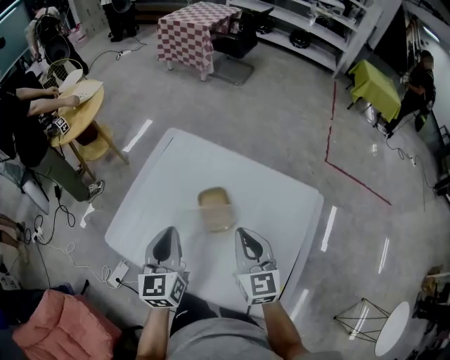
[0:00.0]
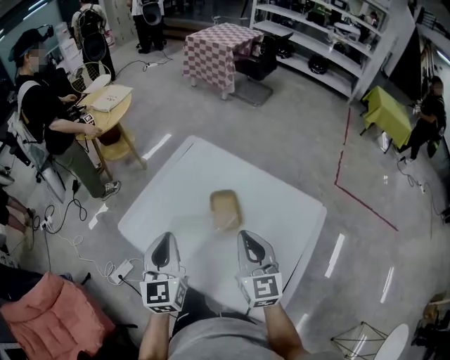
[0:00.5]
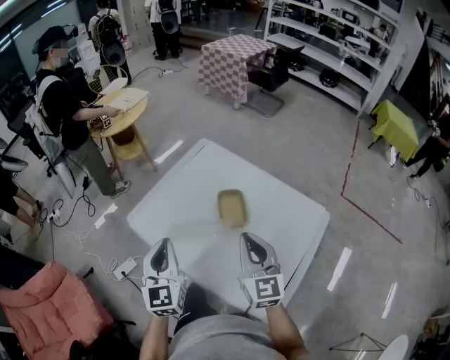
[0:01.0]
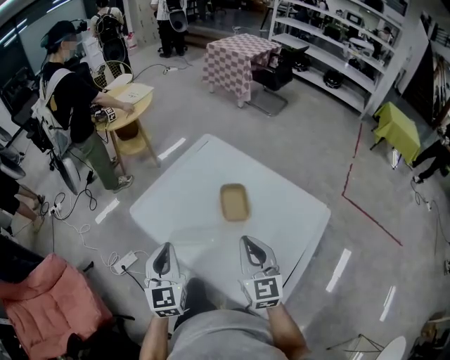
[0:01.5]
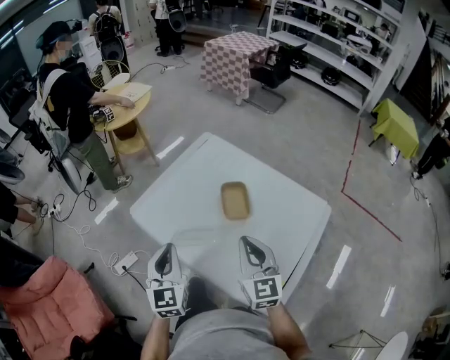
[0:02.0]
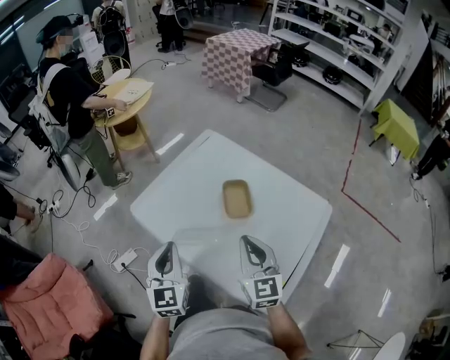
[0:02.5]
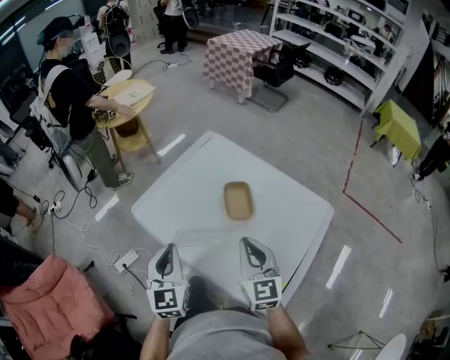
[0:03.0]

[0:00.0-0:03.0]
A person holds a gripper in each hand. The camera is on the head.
0:00.0 to 0:01.5: The left gripper goes roughly 20 cm backward and to the left, and swivels about 20 degrees. Meanwhile the right gripper goes roughly 10 cm backward.
0:01.5 to 0:03.0: The grippers move only a little.

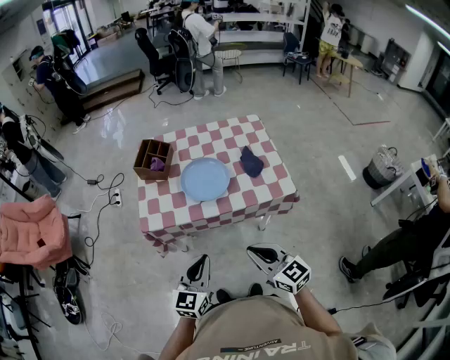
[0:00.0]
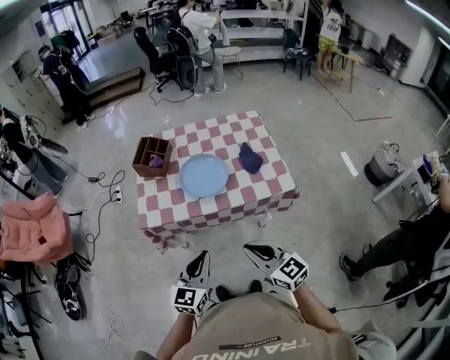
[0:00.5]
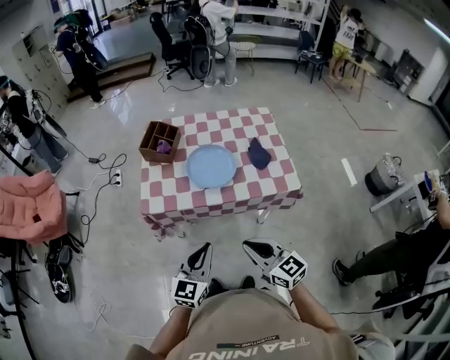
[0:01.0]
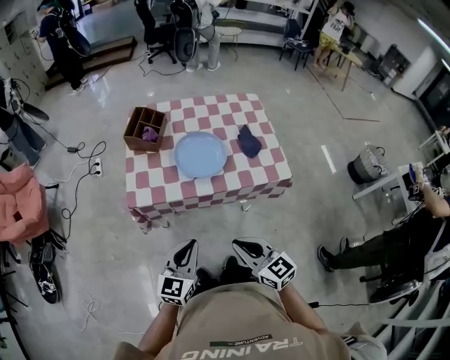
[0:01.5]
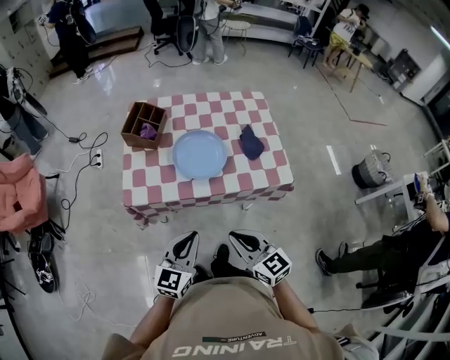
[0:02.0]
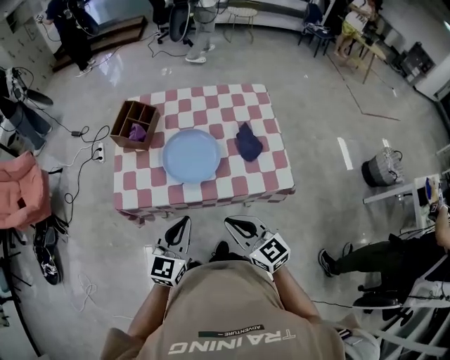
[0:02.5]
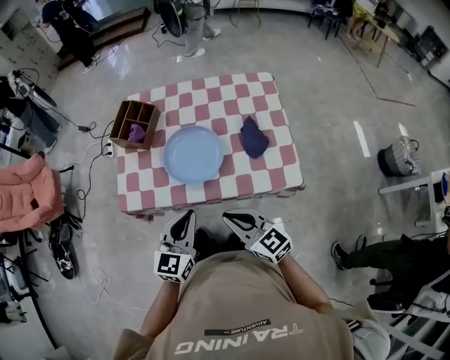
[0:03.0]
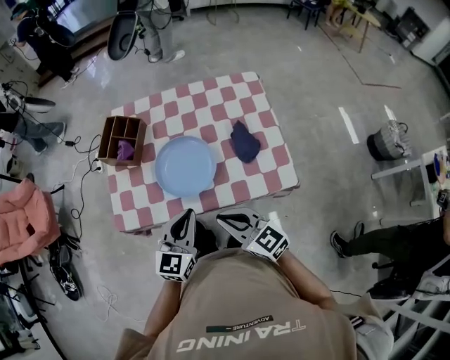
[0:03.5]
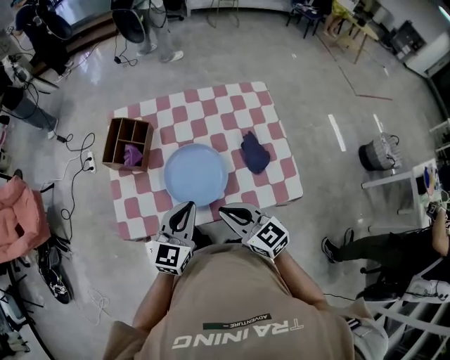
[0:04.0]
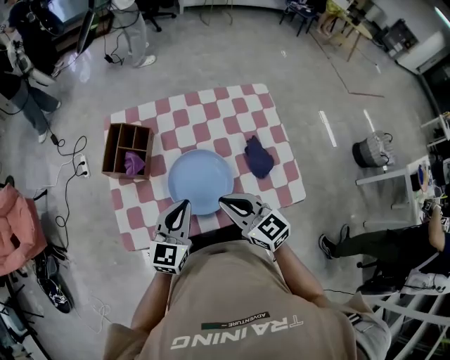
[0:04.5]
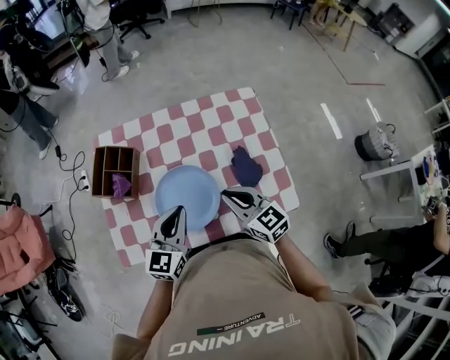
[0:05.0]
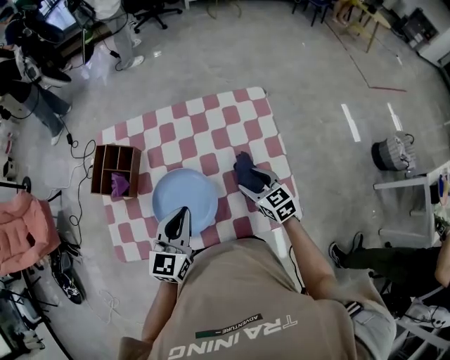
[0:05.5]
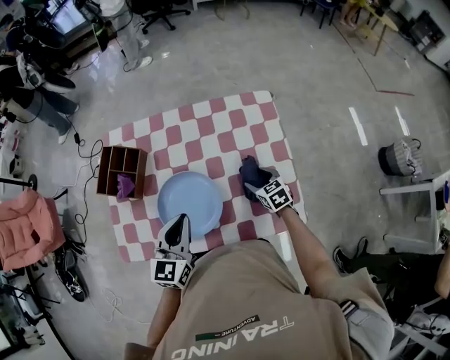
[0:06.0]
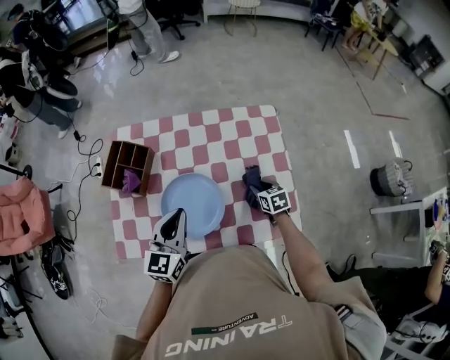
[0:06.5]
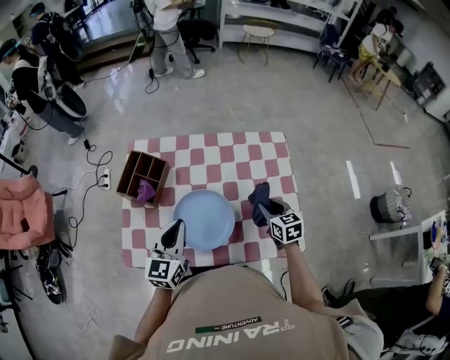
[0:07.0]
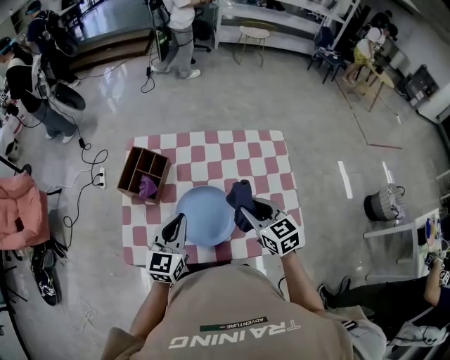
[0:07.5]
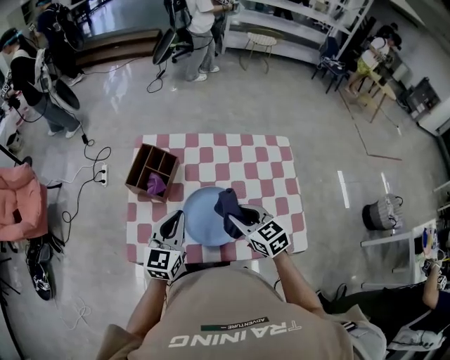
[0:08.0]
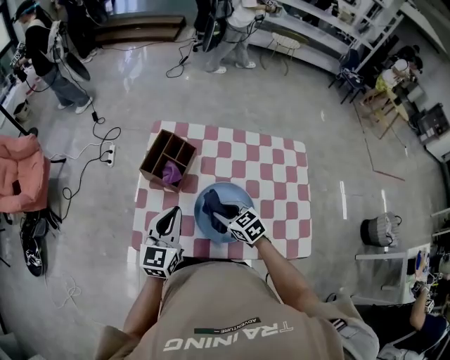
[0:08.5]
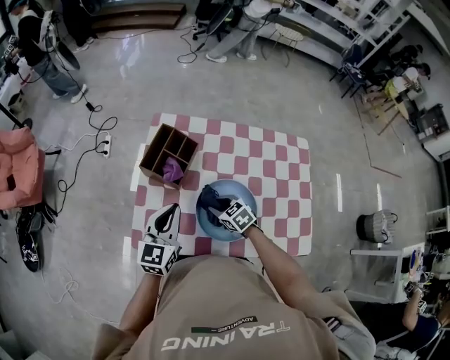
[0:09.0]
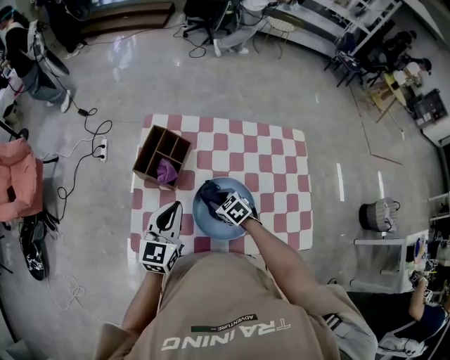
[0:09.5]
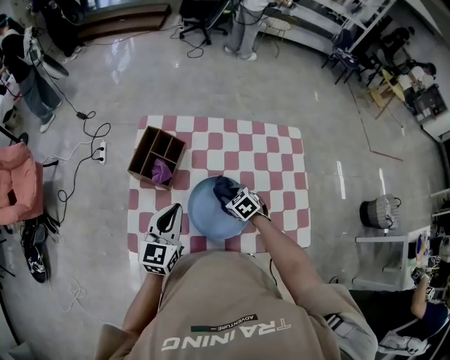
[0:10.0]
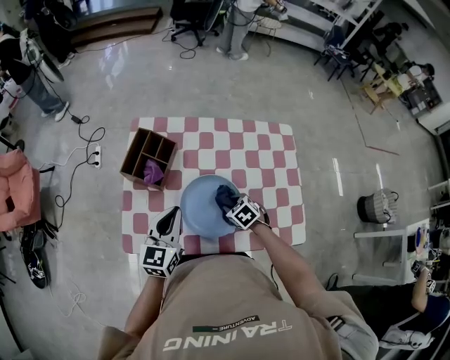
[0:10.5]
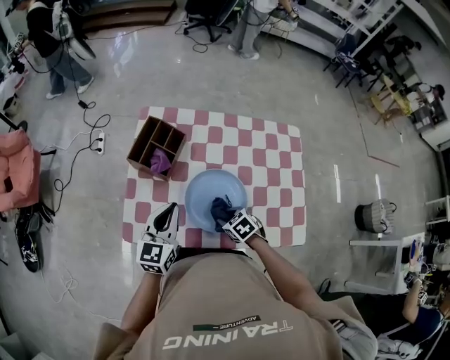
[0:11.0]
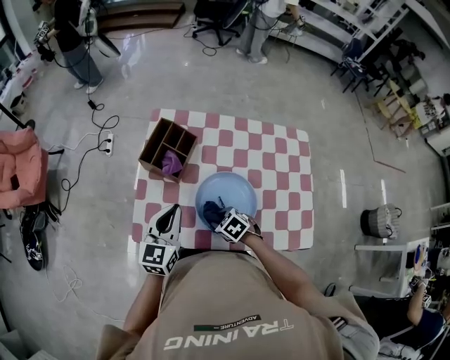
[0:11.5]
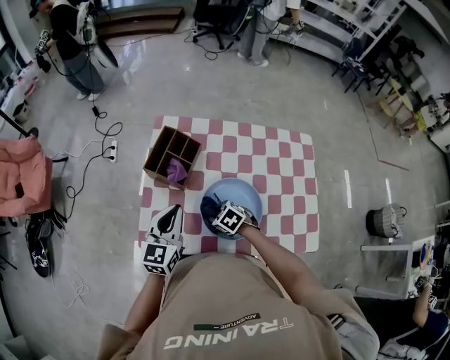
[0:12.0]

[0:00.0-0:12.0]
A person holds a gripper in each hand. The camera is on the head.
0:00.0 to 0:02.0: The grippers move only a little.
0:02.0 to 0:04.0: Both grippers travel together forward, approximately 20 cm.
0:04.0 to 0:06.0: The right gripper shifts approximately 35 cm to the right, forward and downward, turns by roughly 30 degrees, and opens; the left gripper moves forward, about 10 cm.
0:06.0 to 0:08.0: The left gripper travels to the left by approximately 10 cm. The right gripper shifts some 30 cm to the left and upward, rotates approximately 20 degrees, and closes.
0:08.0 to 0:10.0: The right gripper is displaced downward and forward by roughly 20 cm, and rotates approximately 30 degrees.
0:10.0 to 0:12.0: The right gripper heads to the left, covering about 15 cm.

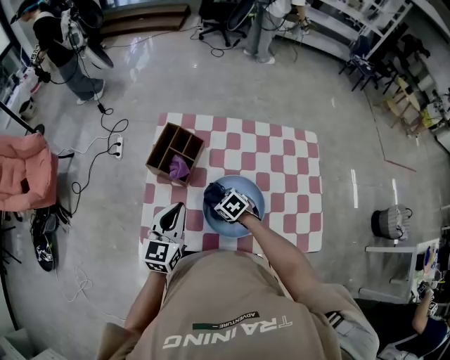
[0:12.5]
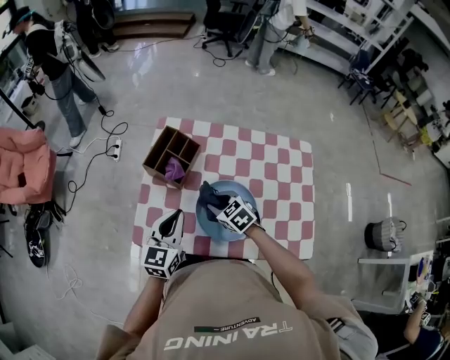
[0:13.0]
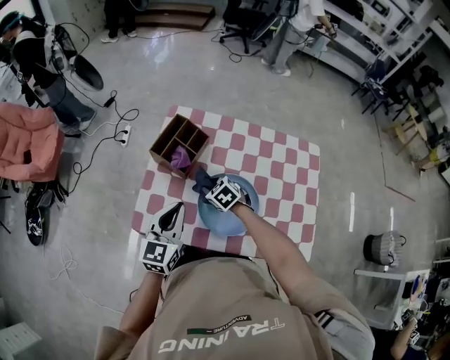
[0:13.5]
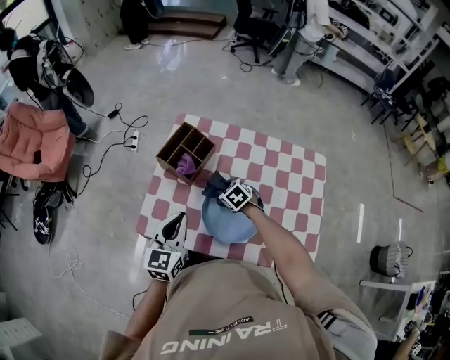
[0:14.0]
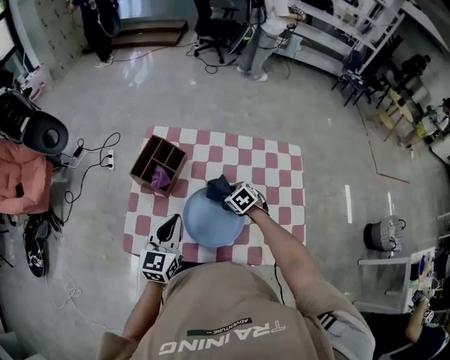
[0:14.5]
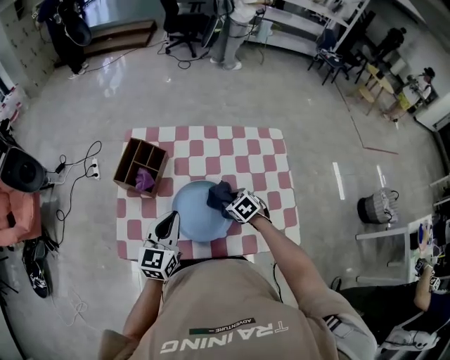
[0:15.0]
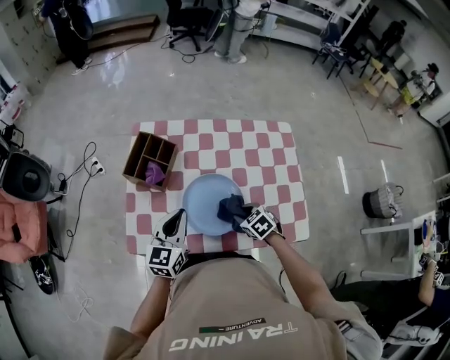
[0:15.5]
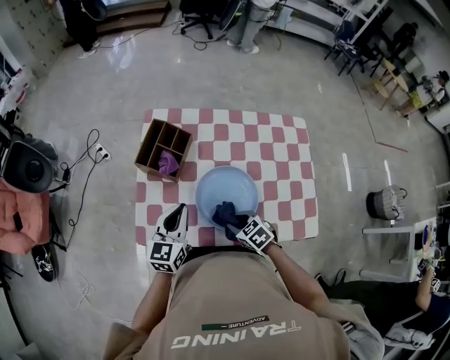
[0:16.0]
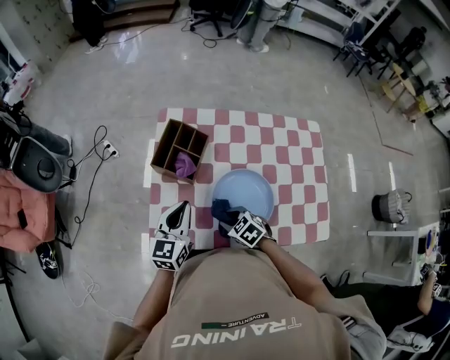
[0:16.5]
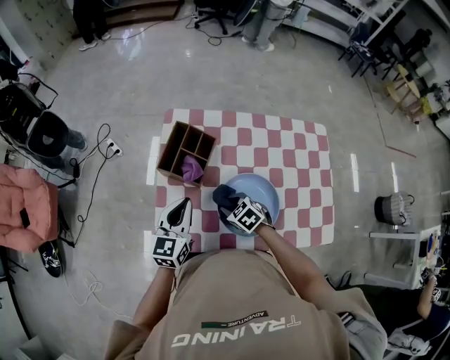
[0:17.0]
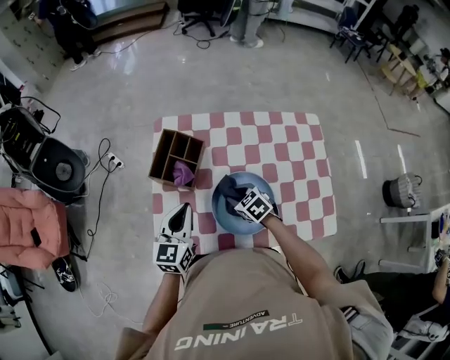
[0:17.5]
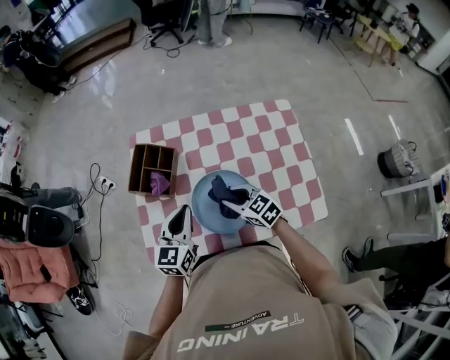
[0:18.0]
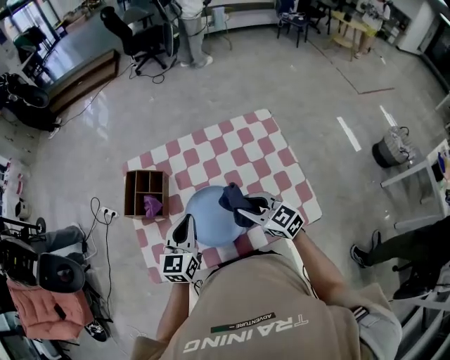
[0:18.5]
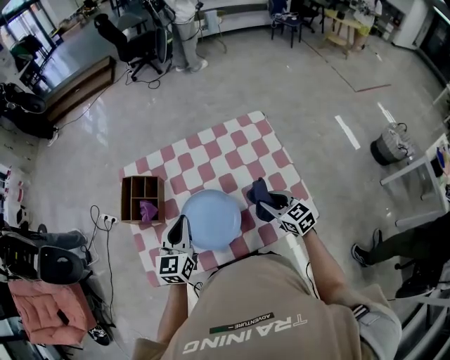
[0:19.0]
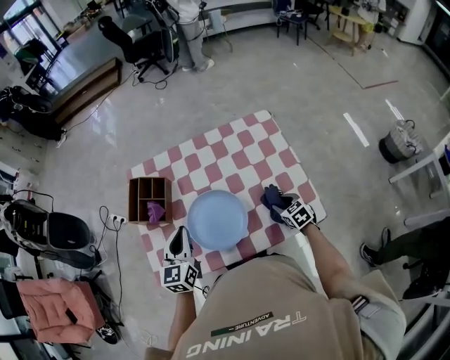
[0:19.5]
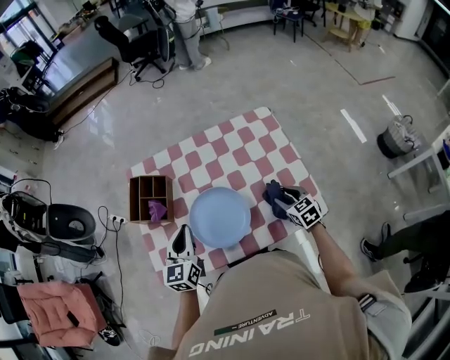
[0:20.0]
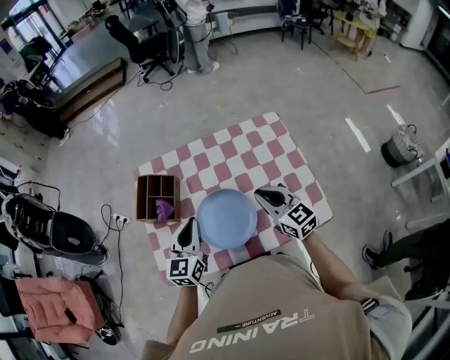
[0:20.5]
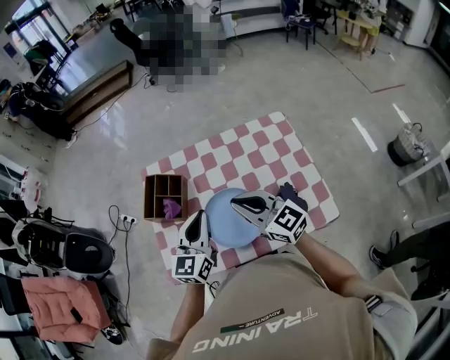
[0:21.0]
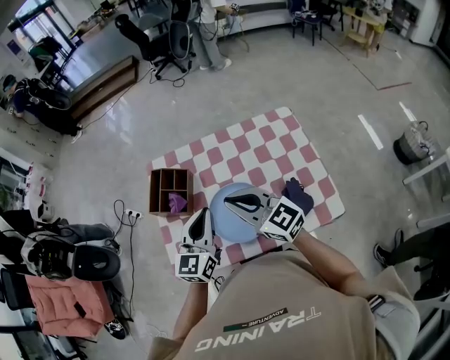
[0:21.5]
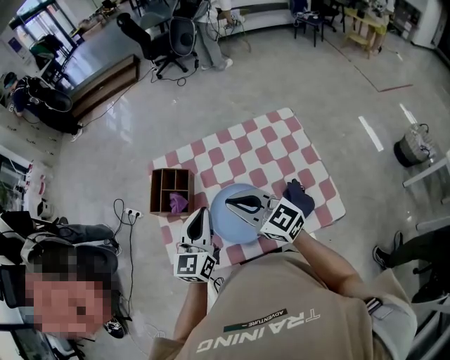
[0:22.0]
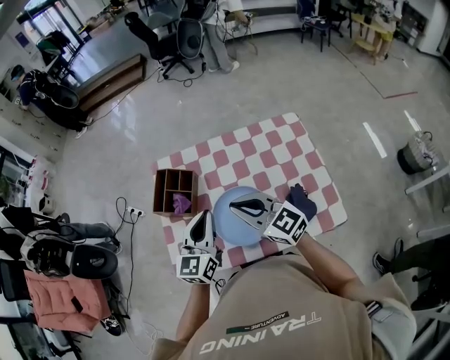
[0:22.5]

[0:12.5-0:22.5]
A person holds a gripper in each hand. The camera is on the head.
0:12.5 to 0:14.5: The left gripper is displaced to the right by approximately 5 cm, while the right gripper is displaced to the right by about 15 cm.
0:14.5 to 0:16.5: The right gripper travels to the left and backward by approximately 20 cm; the left gripper goes roughly 10 cm to the left.
0:16.5 to 0:18.5: The right gripper shifts roughly 25 cm to the right and upward, and points its fingers some 40 degrees further upward, while the left gripper shifts approximately 15 cm to the right.
0:18.5 to 0:20.5: The right gripper reaches some 15 cm downward, then returns, and closes.
0:20.5 to 0:22.5: The right gripper shifts about 15 cm to the left and upward, and changes its angle by about 20 degrees.

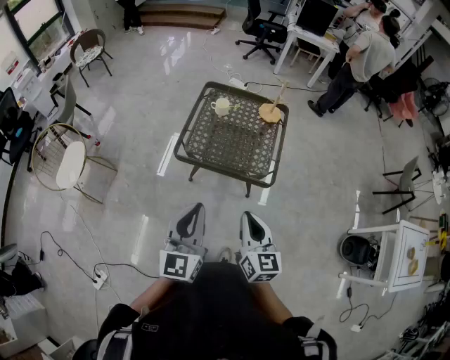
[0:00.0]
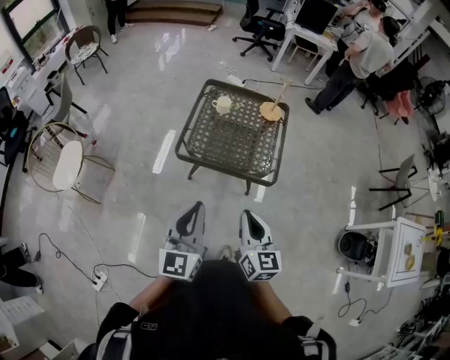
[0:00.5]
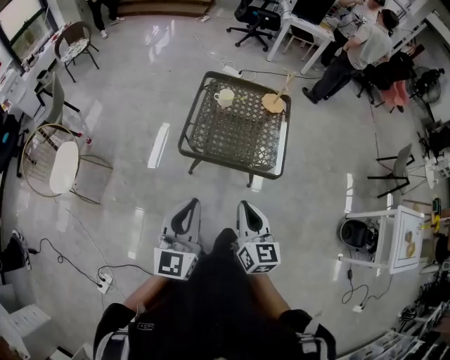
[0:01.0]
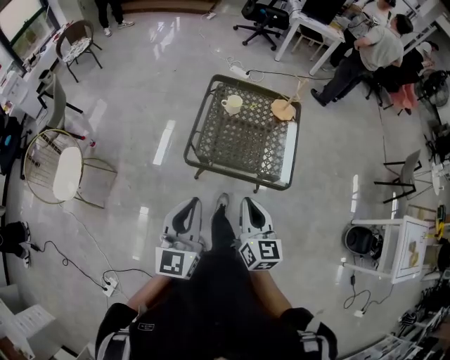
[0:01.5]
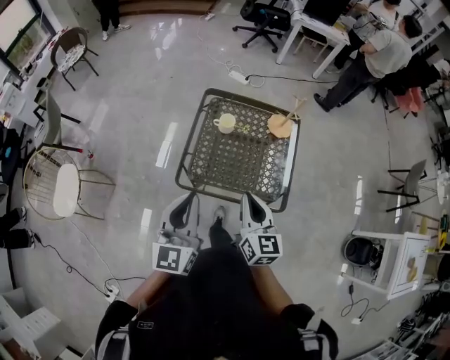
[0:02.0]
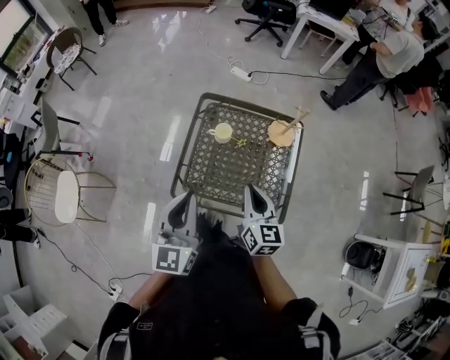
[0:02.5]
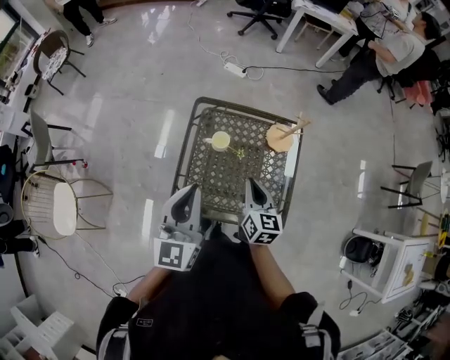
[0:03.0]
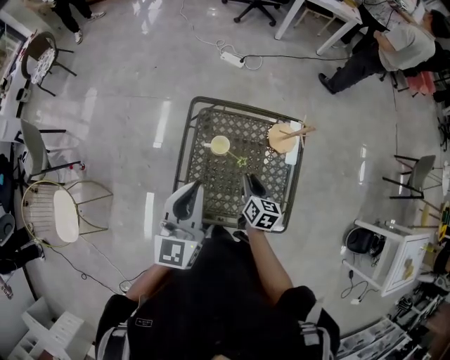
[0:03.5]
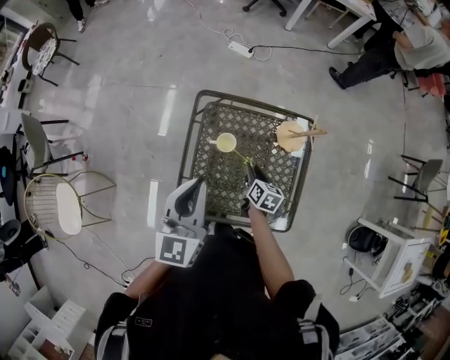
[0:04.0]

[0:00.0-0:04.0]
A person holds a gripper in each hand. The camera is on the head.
0:00.0 to 0:02.0: Both grippers move forward, some 30 cm.
0:02.0 to 0:04.0: The left gripper heads forward, covering about 30 cm. The right gripper moves forward and downward, about 40 cm, changes its angle by about 40 degrees, and opens.
